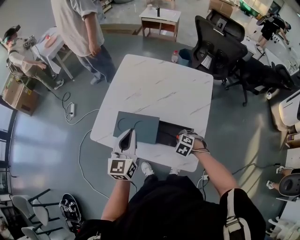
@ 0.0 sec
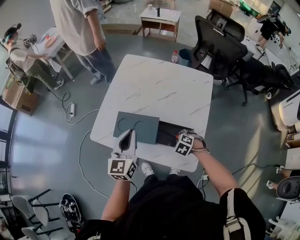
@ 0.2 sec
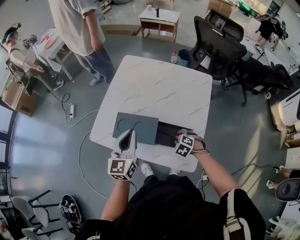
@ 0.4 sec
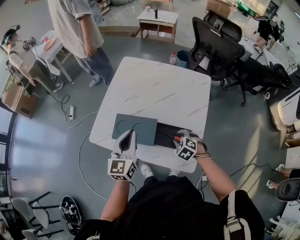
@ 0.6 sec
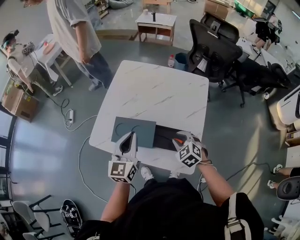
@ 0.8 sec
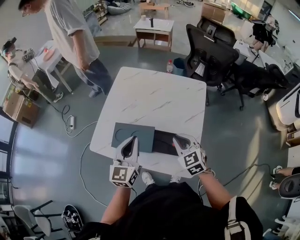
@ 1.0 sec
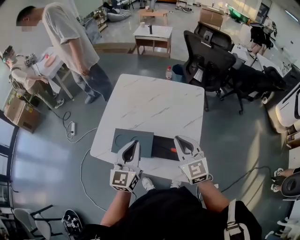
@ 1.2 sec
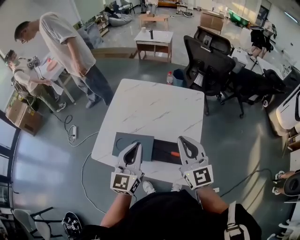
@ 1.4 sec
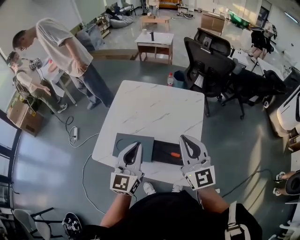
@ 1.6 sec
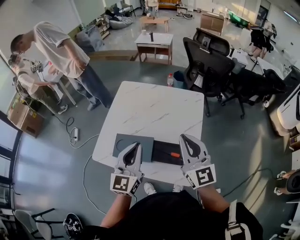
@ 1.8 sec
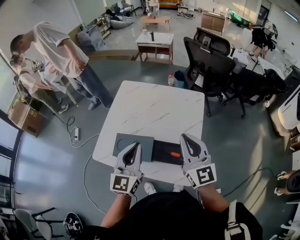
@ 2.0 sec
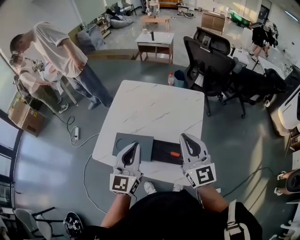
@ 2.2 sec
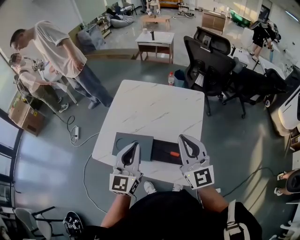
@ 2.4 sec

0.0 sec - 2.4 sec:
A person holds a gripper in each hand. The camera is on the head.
0.0 sec - 1.2 sec: The right gripper is displaced upward by roughly 30 cm, and tilts its fingers roughly 60 degrees upward; the left gripper goes some 5 cm to the right.
1.2 sec - 2.4 sec: The right gripper goes roughly 10 cm upward, and swivels approximately 20 degrees.

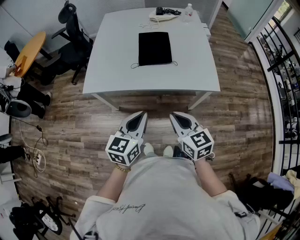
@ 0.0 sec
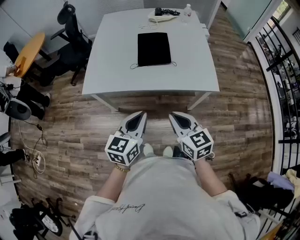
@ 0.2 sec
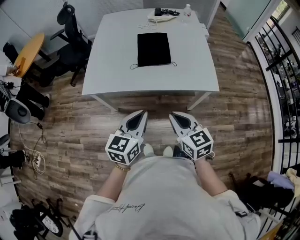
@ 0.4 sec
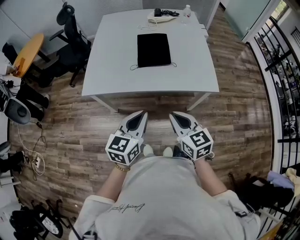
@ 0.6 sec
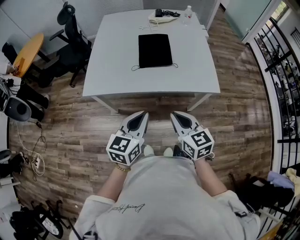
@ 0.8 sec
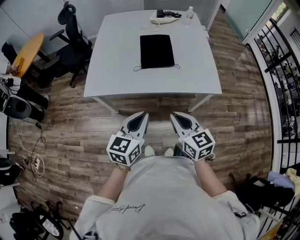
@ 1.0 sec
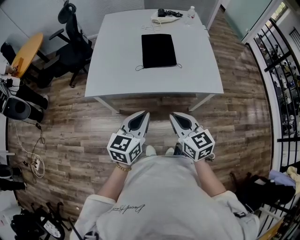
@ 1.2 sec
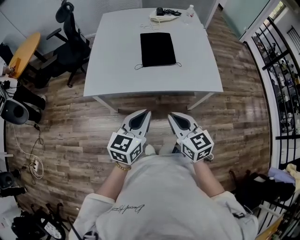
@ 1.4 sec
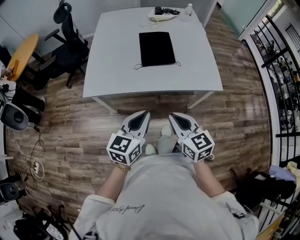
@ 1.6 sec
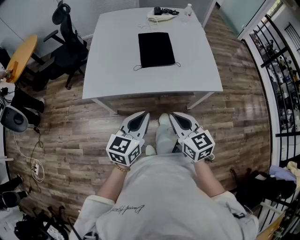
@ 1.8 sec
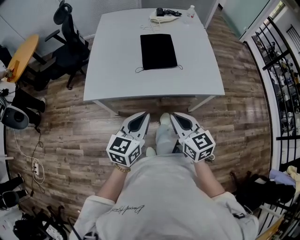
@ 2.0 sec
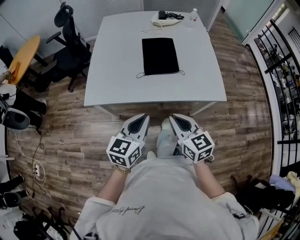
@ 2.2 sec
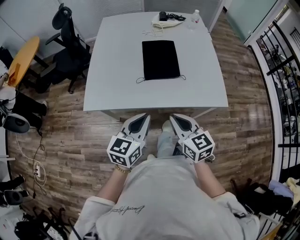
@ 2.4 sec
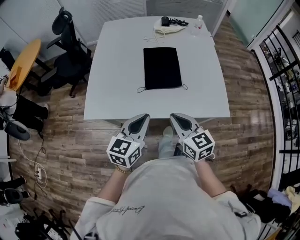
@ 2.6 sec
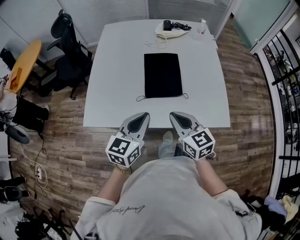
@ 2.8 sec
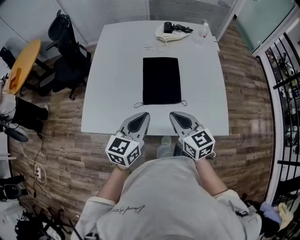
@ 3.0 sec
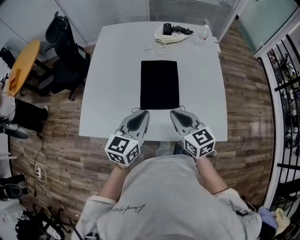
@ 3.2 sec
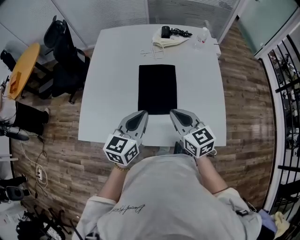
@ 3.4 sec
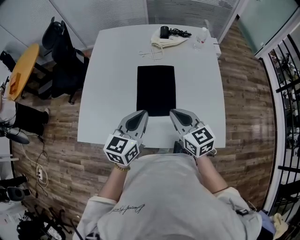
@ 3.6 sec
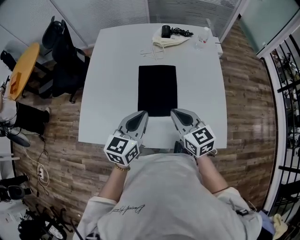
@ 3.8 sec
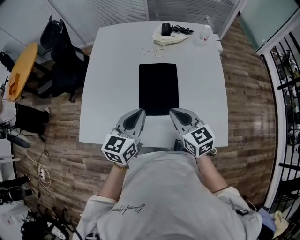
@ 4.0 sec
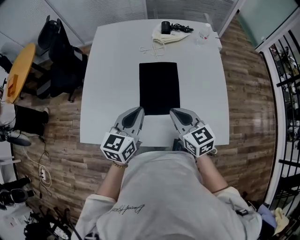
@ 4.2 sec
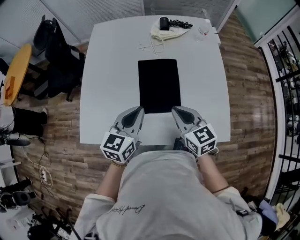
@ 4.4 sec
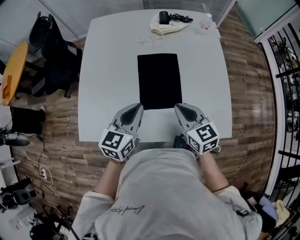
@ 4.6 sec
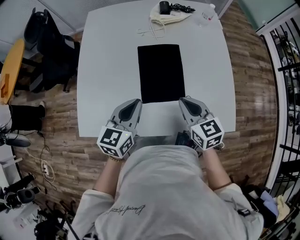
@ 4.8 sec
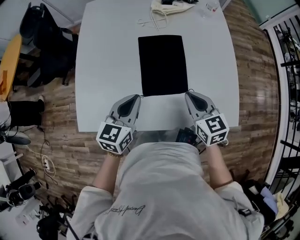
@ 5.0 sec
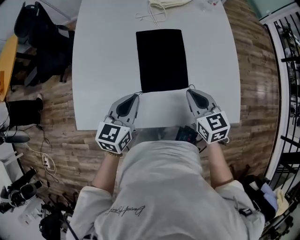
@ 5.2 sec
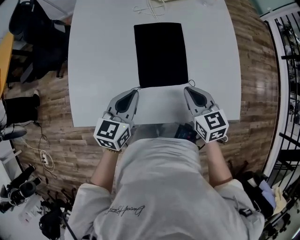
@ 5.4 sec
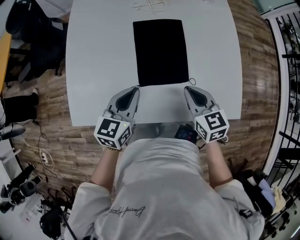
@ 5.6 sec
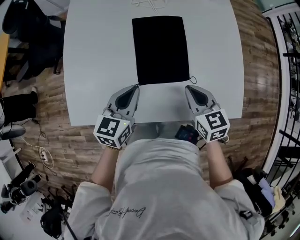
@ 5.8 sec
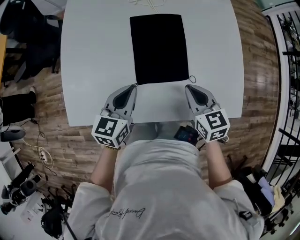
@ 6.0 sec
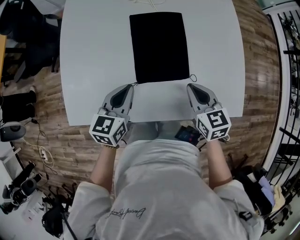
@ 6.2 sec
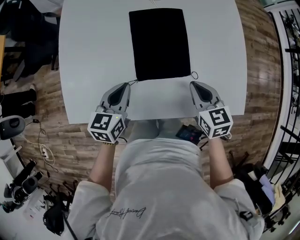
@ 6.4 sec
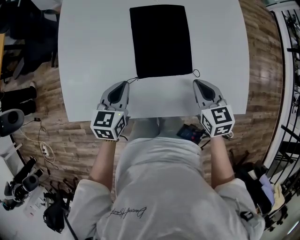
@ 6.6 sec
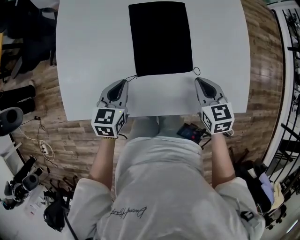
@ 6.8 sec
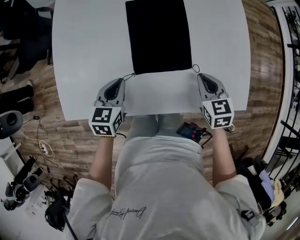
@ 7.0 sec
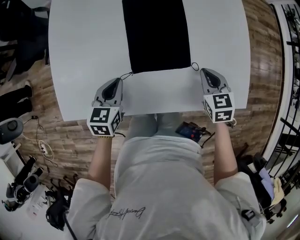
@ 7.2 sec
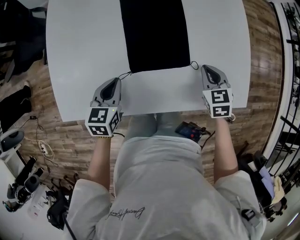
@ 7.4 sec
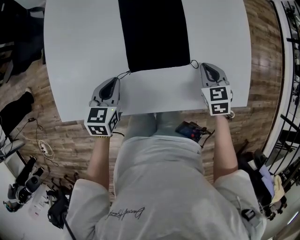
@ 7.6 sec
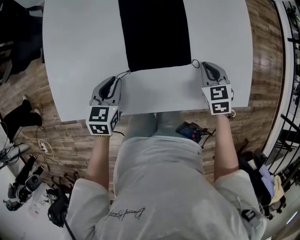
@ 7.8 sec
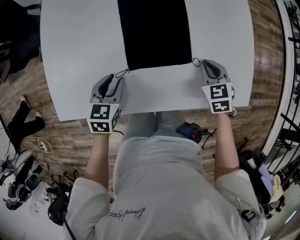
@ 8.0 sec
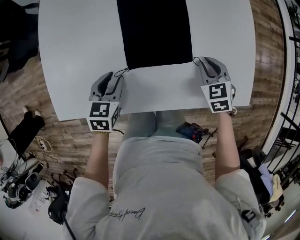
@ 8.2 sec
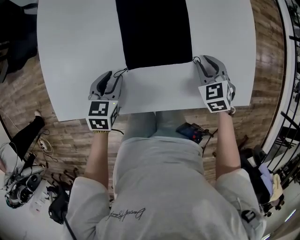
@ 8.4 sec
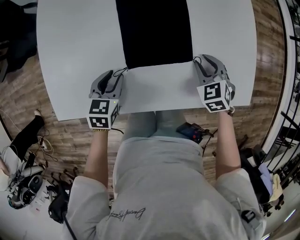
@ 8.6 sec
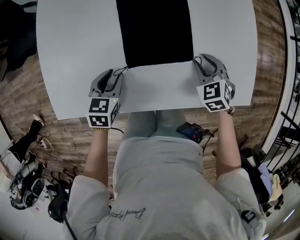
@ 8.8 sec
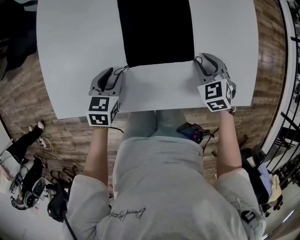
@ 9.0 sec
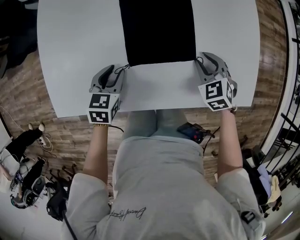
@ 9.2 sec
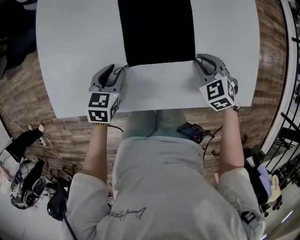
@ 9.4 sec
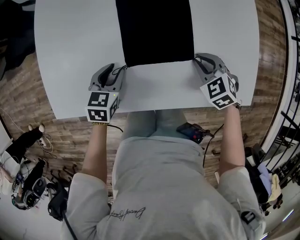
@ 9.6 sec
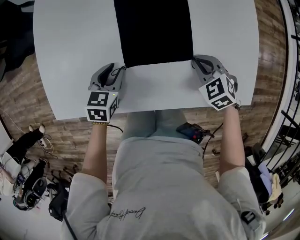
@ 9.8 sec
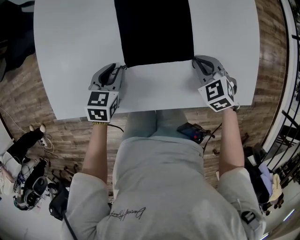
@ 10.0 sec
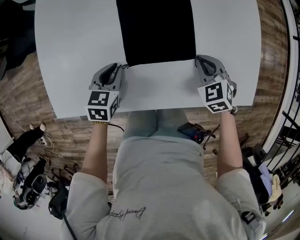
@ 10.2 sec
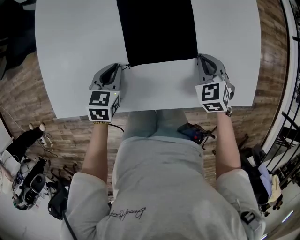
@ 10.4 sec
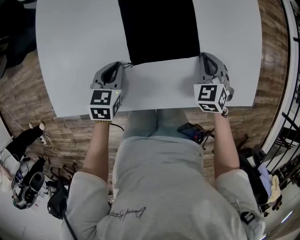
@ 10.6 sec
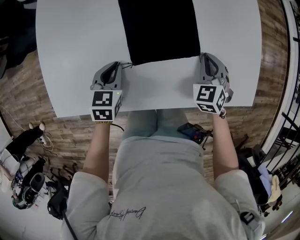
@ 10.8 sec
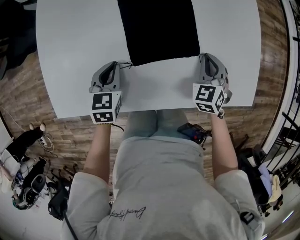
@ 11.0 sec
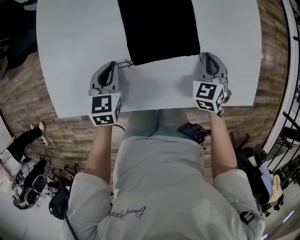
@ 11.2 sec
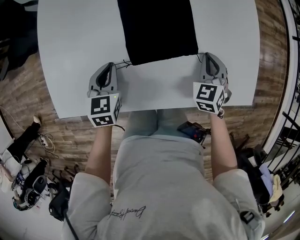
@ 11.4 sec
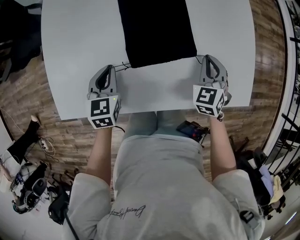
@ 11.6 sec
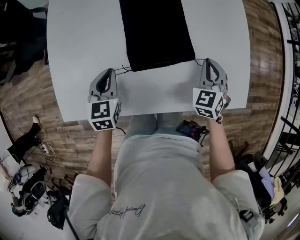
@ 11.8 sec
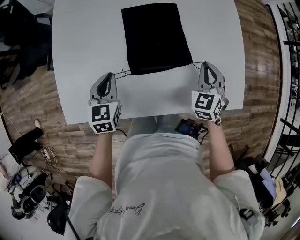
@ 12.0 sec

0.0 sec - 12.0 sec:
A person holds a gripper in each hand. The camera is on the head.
0.0 sec - 1.6 sec: The right gripper moves to the left, roughly 5 cm.
1.6 sec - 3.0 sec: Both grippers travel together forward, some 25 cm.
3.0 sec - 4.4 sec: Both grippers move forward, roughly 10 cm.
4.4 sec - 6.0 sec: Both grippers travel together downward, some 10 cm.
6.0 sec - 7.6 sec: The left gripper moves downward, roughly 10 cm; the right gripper moves downward and to the right, roughly 15 cm, and turns by about 20 degrees.
7.6 sec - 9.0 sec: The right gripper opens; the left gripper opens its fingers.
9.0 sec - 10.4 sec: The right gripper closes its fingers. Meanwhile the left gripper closes up.
10.4 sec - 12.0 sec: Both grippers move upward, approximately 10 cm. The right gripper changes its angle by some 20 degrees.

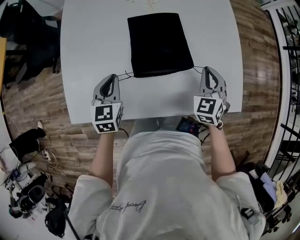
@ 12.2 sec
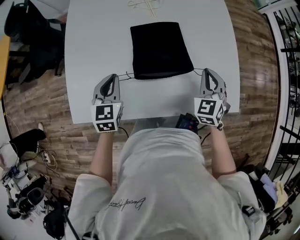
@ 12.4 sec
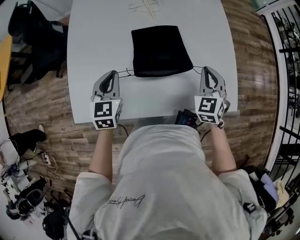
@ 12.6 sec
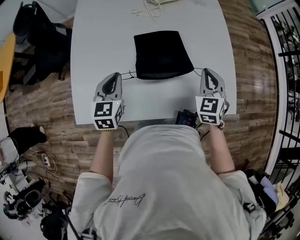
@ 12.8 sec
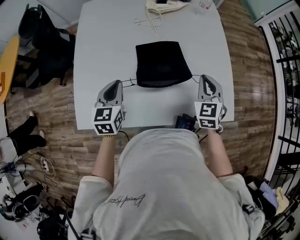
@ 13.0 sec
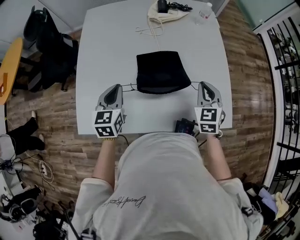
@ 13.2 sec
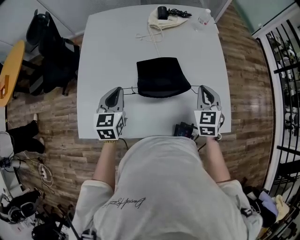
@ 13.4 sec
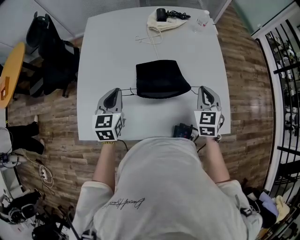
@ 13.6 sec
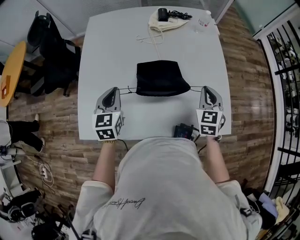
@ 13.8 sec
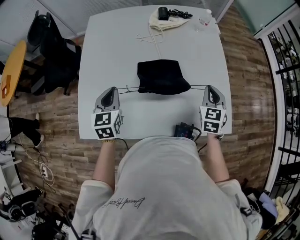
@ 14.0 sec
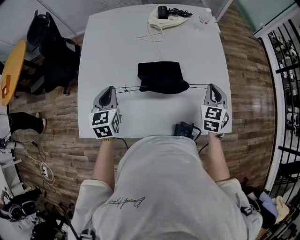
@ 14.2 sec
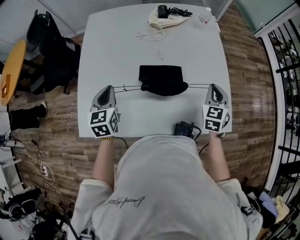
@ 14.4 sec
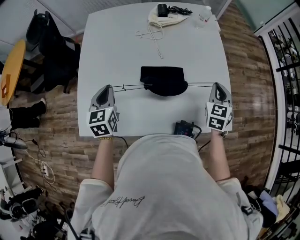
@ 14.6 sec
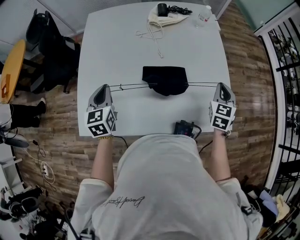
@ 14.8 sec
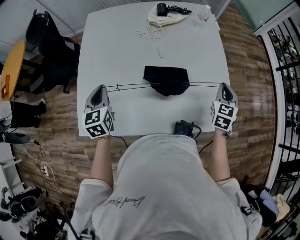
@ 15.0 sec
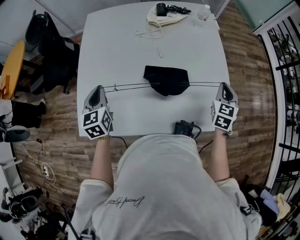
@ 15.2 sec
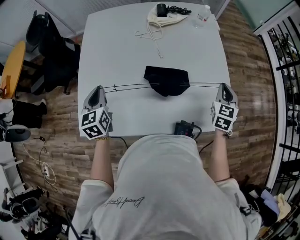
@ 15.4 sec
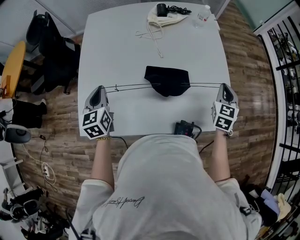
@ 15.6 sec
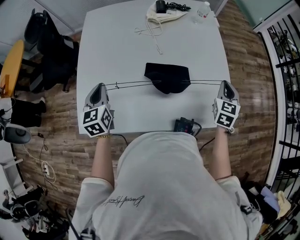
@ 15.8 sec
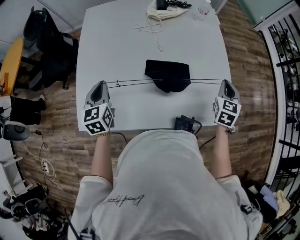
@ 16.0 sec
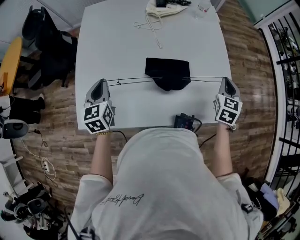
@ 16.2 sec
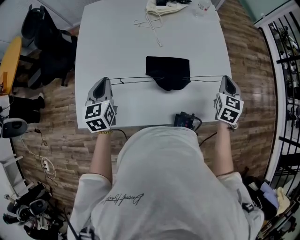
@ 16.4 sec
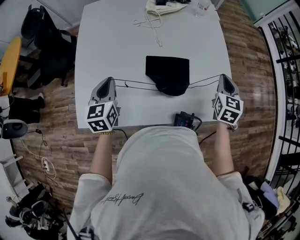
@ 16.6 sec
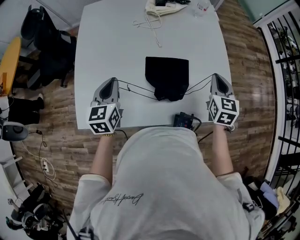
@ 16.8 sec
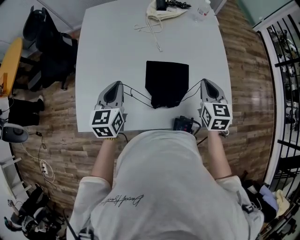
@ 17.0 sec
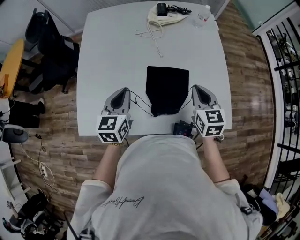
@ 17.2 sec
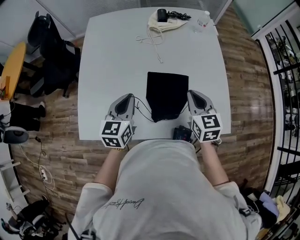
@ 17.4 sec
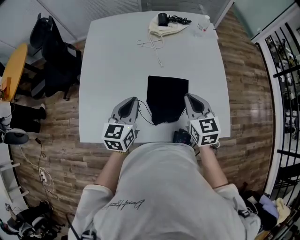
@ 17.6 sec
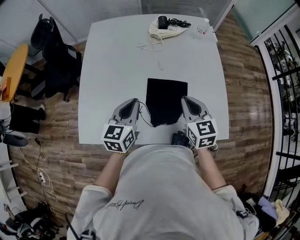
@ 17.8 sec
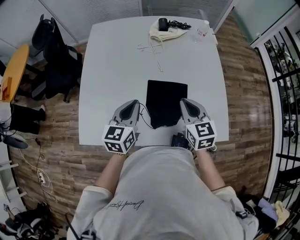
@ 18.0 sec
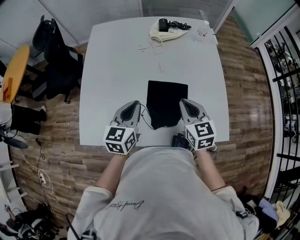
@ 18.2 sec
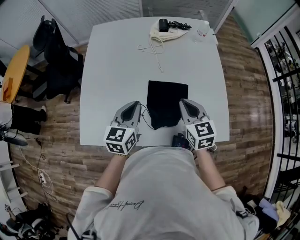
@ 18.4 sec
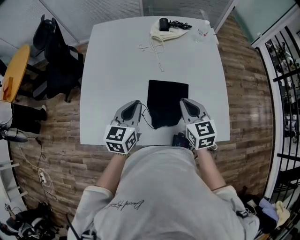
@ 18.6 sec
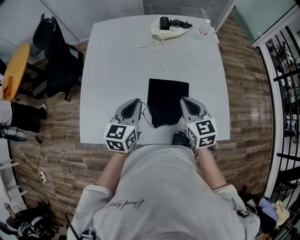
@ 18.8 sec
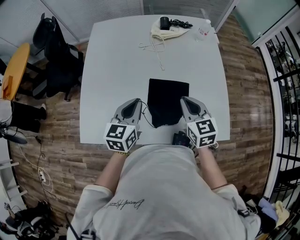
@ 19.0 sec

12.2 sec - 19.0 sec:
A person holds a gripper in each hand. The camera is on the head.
12.2 sec - 13.6 sec: Both grippers travel together upward, approximately 10 cm.
13.6 sec - 15.0 sec: The left gripper travels to the left by roughly 5 cm; the right gripper shifts about 10 cm to the right.
15.0 sec - 16.2 sec: The grippers move only a little.
16.2 sec - 17.6 sec: The left gripper moves to the right, about 10 cm, and rotates roughly 20 degrees; the right gripper shifts about 20 cm to the left, and turns by some 30 degrees.
17.6 sec - 19.0 sec: The grippers stay close to where they were, moving slightly.

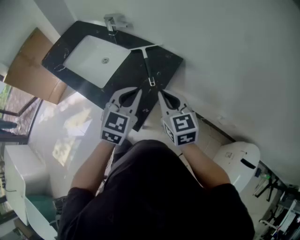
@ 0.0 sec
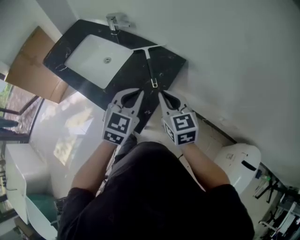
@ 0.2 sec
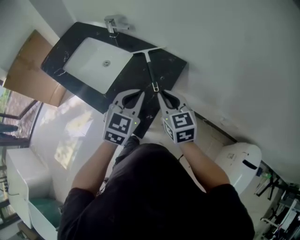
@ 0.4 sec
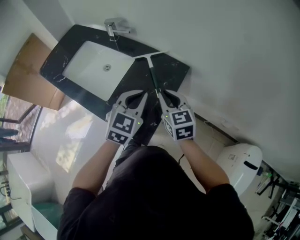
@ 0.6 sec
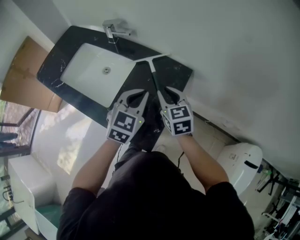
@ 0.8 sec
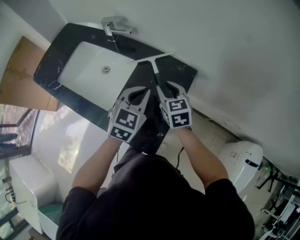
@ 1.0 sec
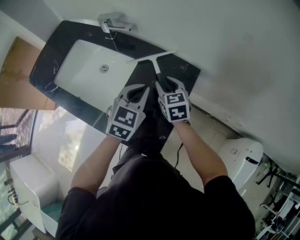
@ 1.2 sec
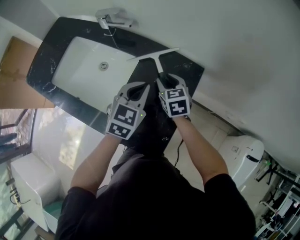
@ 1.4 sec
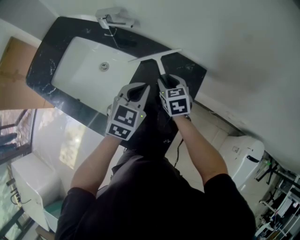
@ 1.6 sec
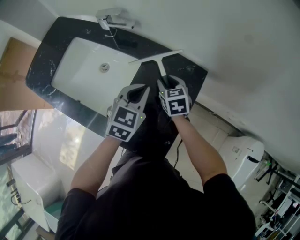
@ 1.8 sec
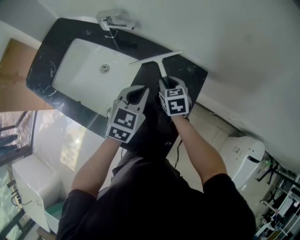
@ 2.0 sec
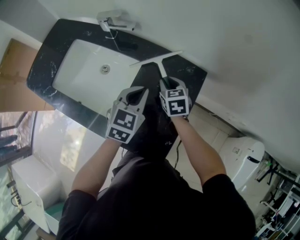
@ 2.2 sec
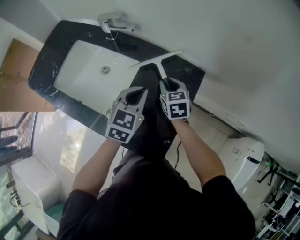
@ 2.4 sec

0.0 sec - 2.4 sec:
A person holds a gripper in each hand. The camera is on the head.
0.0 sec - 1.2 sec: The left gripper is displaced forward by approximately 15 cm. The right gripper heads forward and downward, covering about 25 cm, and opens.
